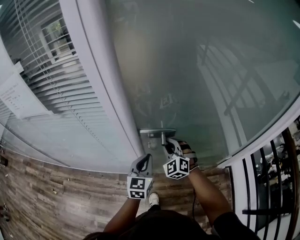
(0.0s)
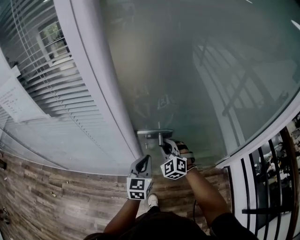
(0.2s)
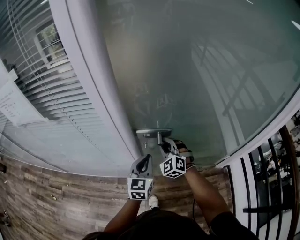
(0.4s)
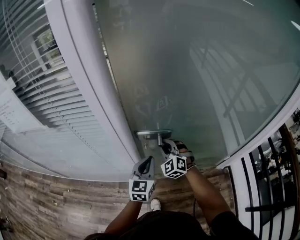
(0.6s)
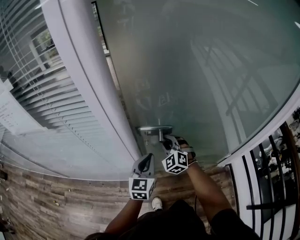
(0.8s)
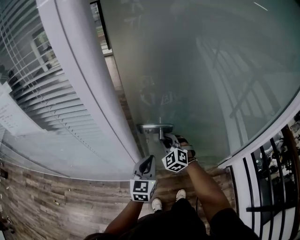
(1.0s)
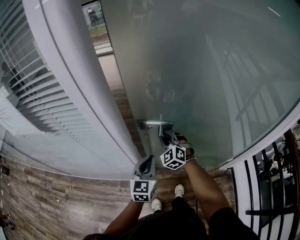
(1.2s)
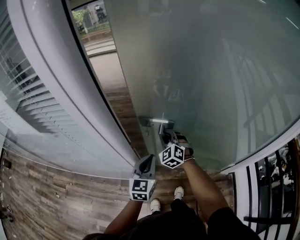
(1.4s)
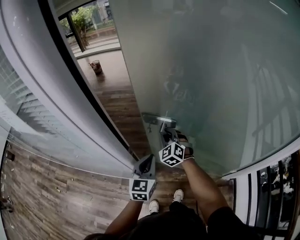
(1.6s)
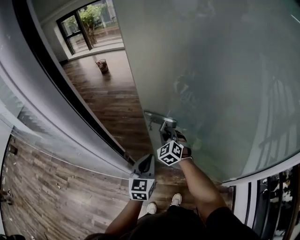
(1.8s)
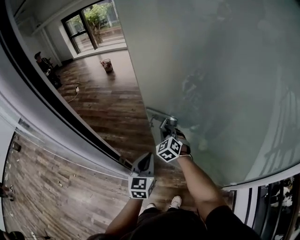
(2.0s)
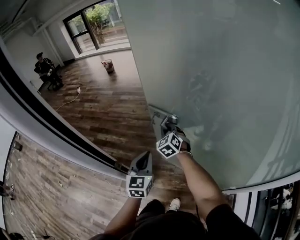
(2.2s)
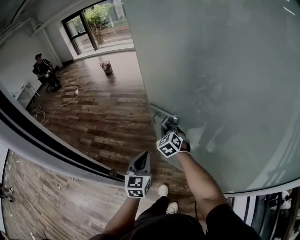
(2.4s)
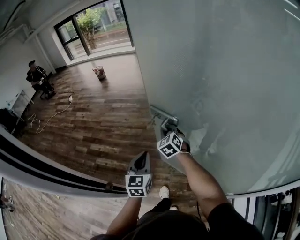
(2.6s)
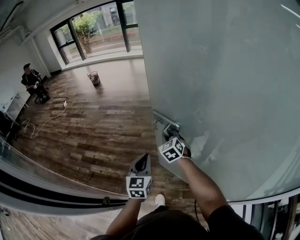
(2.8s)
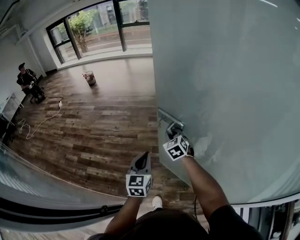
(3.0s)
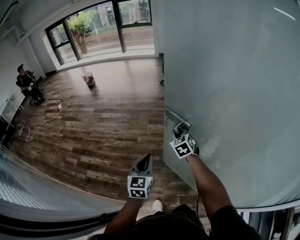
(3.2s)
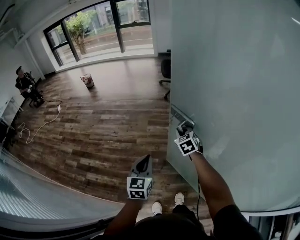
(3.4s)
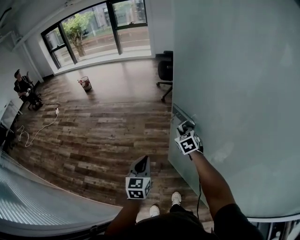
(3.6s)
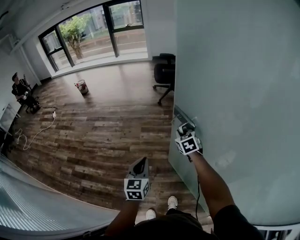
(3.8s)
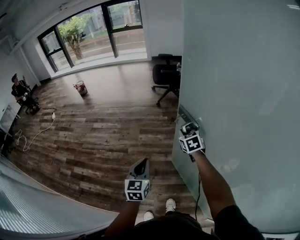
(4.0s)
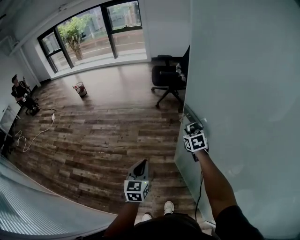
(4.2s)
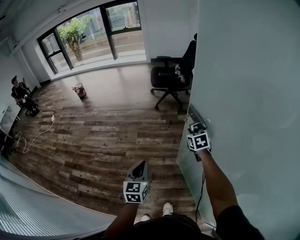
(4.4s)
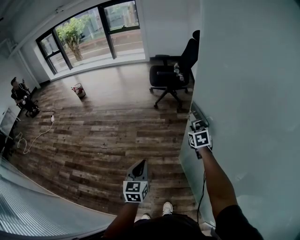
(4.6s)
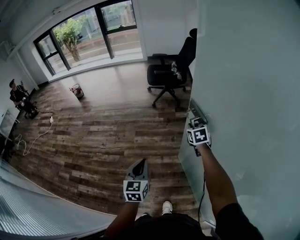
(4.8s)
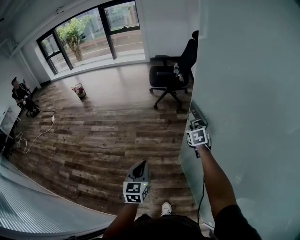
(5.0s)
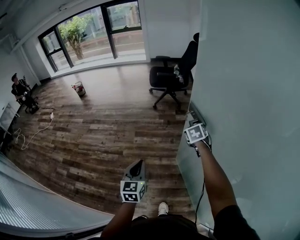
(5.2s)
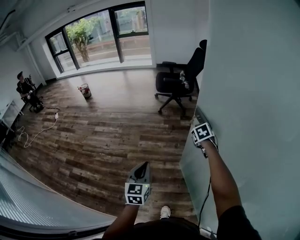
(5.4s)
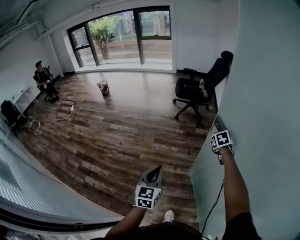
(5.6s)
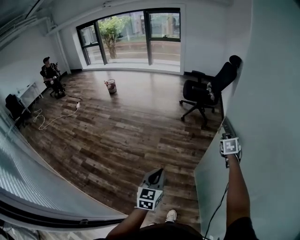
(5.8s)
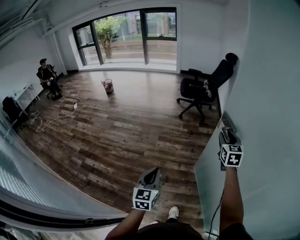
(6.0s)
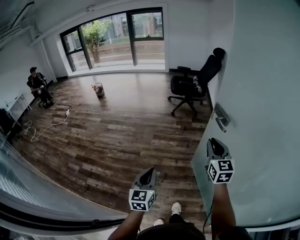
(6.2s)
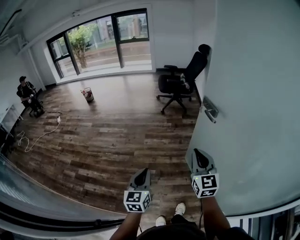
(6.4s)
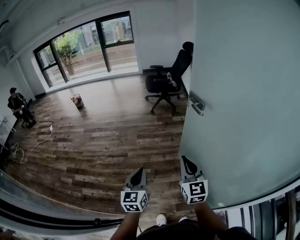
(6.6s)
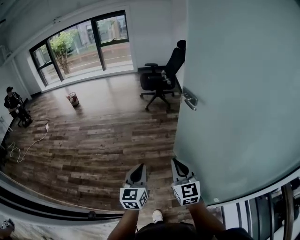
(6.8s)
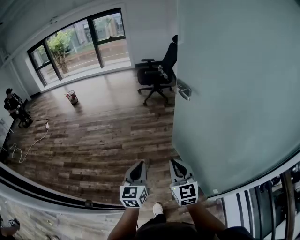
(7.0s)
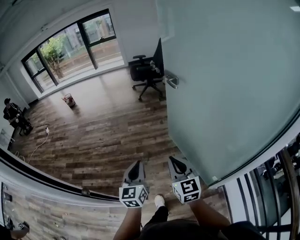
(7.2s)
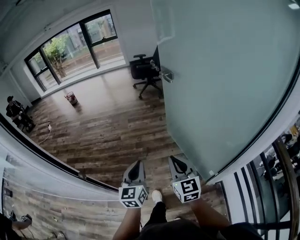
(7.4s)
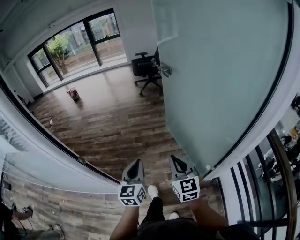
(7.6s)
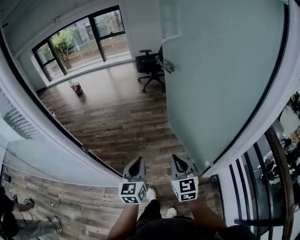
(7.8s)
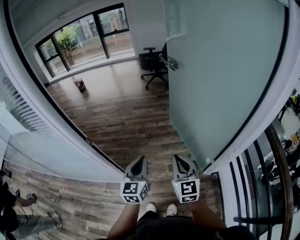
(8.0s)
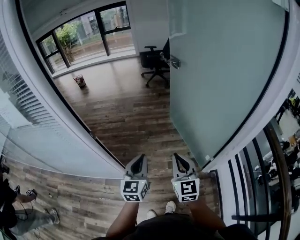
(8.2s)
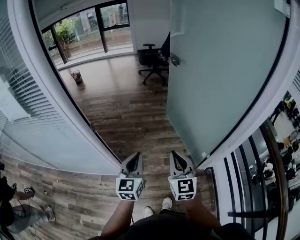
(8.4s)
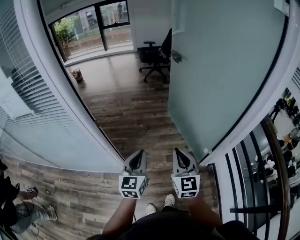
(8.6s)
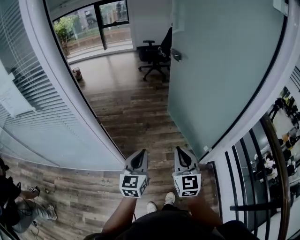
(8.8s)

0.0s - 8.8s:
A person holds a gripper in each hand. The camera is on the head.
0.0s - 1.4s: The right gripper shifts some 15 cm forward. The left gripper moves forward, roughly 10 cm.
1.4s - 3.0s: The right gripper shifts roughly 40 cm forward and to the right, and turns by approximately 20 degrees; the left gripper heads forward, covering some 35 cm.
3.0s - 4.4s: The left gripper travels forward and to the right by about 30 cm; the right gripper is displaced to the right and forward by some 40 cm, and turns by approximately 20 degrees.
4.4s - 5.8s: The left gripper is displaced backward and to the left by about 15 cm. Meanwhile the right gripper moves upward, roughly 10 cm, and opens up.
5.8s - 7.4s: Both grippers are carried backward, roughly 60 cm. The right gripper tilts its fingers roughly 30 degrees upward, and closes up.
7.4s - 8.8s: Both grippers move backward, some 25 cm.

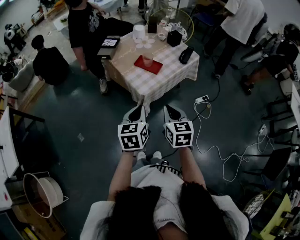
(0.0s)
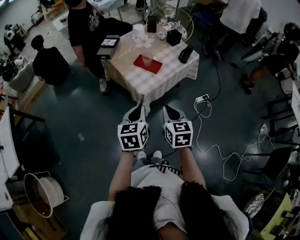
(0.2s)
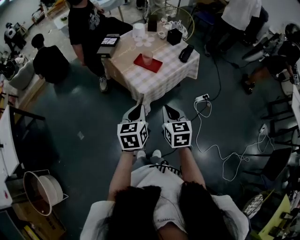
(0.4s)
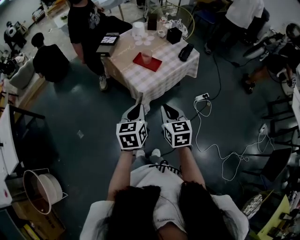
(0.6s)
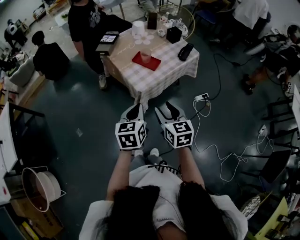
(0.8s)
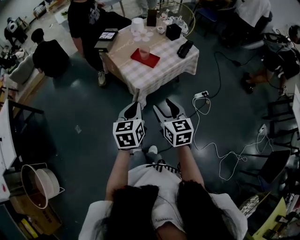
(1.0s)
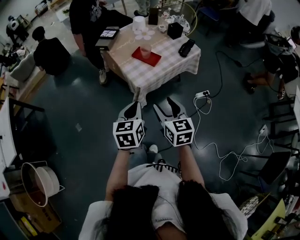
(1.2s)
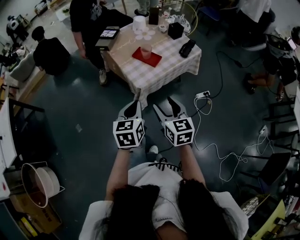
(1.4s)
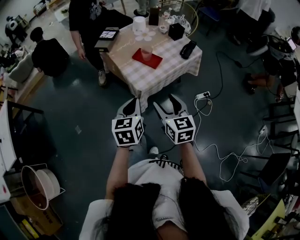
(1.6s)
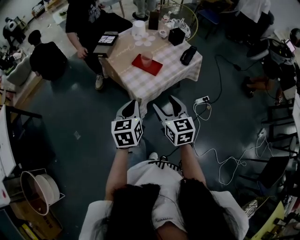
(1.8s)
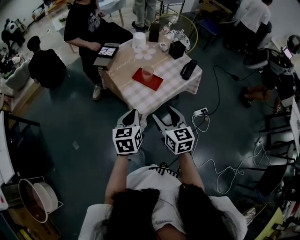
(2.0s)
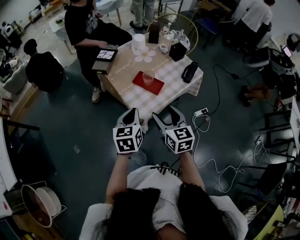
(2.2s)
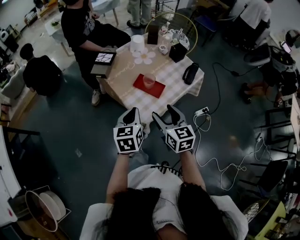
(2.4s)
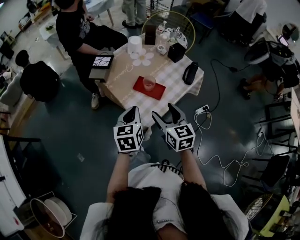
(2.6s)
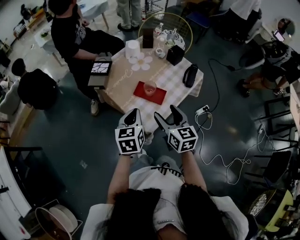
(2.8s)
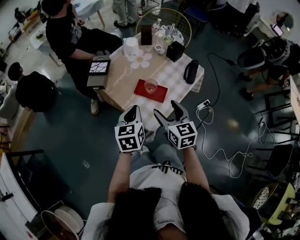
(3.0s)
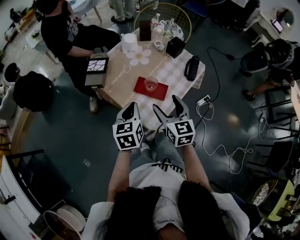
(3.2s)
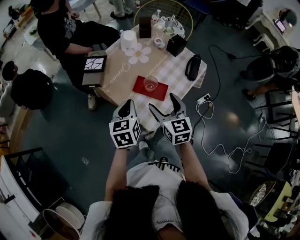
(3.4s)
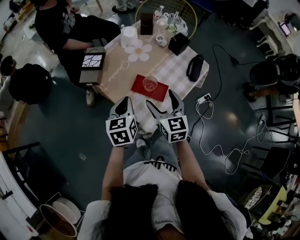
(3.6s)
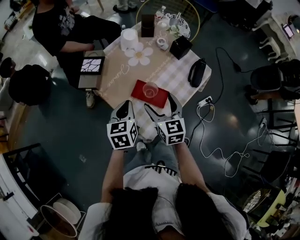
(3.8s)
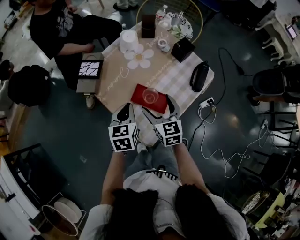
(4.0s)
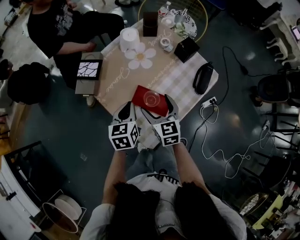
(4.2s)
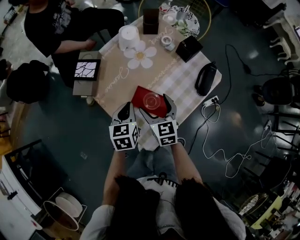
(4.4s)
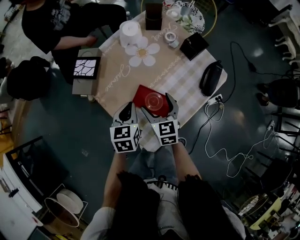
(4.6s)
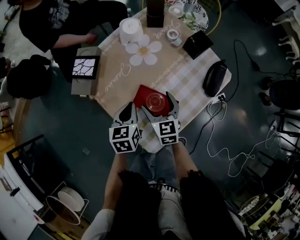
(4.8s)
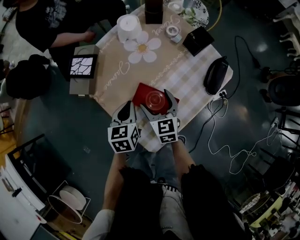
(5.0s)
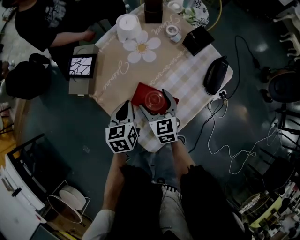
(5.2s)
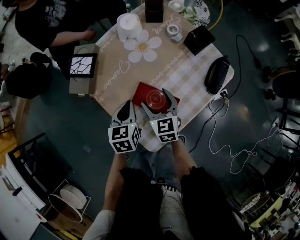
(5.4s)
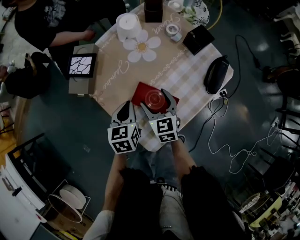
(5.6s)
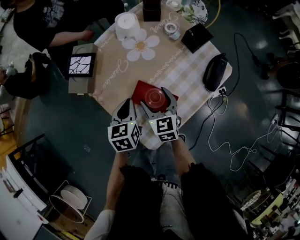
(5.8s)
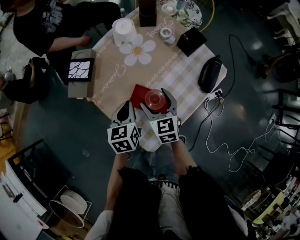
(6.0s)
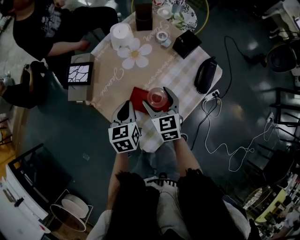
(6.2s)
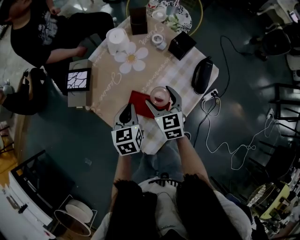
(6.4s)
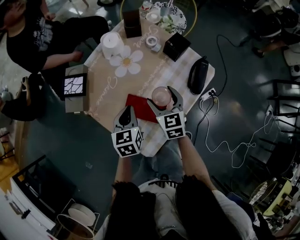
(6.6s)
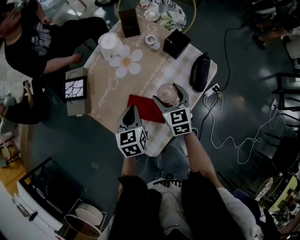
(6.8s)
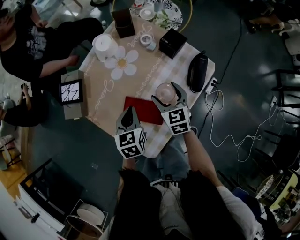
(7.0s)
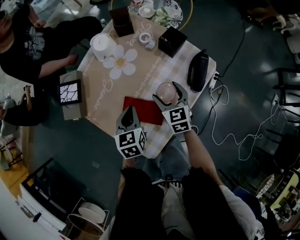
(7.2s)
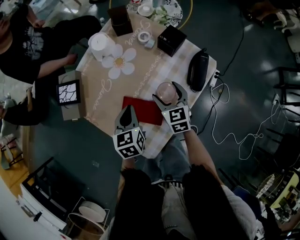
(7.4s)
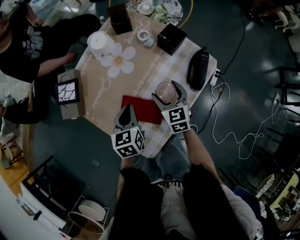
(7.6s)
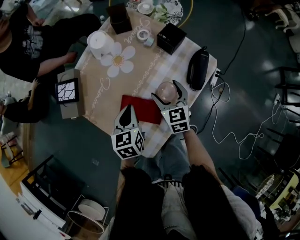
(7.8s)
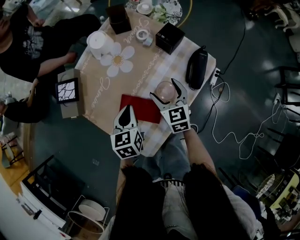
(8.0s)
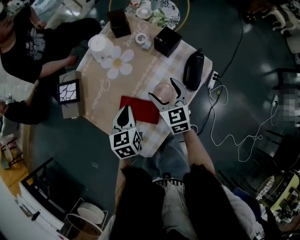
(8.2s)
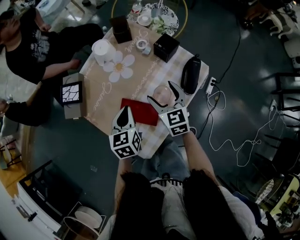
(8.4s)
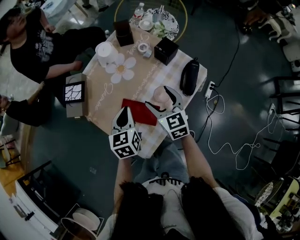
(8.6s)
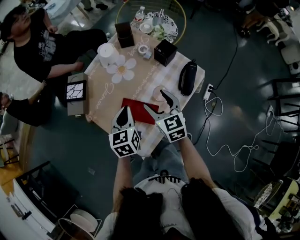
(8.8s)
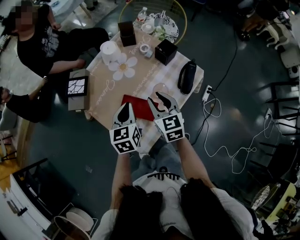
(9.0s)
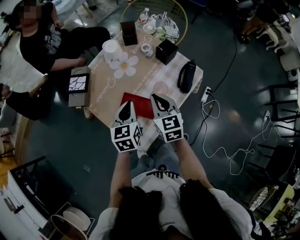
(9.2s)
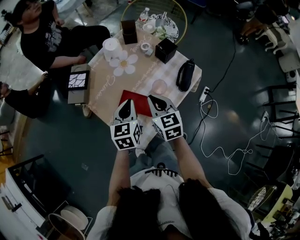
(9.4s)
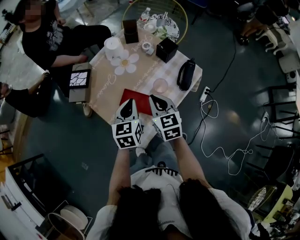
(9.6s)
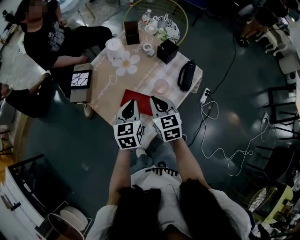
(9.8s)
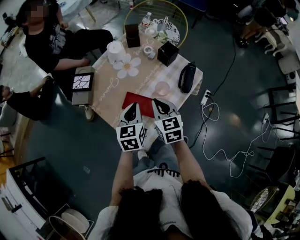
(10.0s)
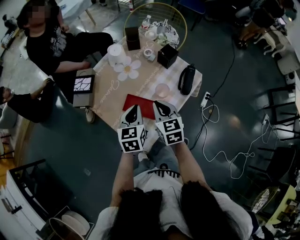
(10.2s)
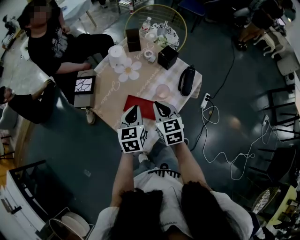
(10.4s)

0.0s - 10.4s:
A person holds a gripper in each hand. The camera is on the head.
0.0s - 1.4s: The right gripper opens its fingers.
1.4s - 3.0s: Both grippers move forward, some 25 cm.
3.0s - 4.4s: Both grippers travel together forward and downward, about 20 cm.
4.4s - 6.0s: There are only small adjustments of the grippers.
6.0s - 7.4s: The right gripper moves to the right, roughly 10 cm; the left gripper moves to the right, approximately 5 cm.
7.4s - 9.0s: The right gripper moves upward and backward, roughly 15 cm, and closes. Meanwhile the left gripper moves upward, roughly 10 cm.
9.0s - 10.4s: The grippers stay close to where they were, moving slightly.

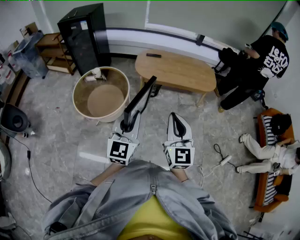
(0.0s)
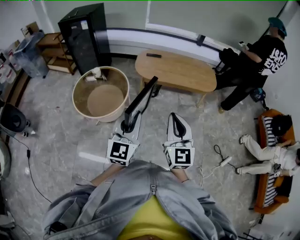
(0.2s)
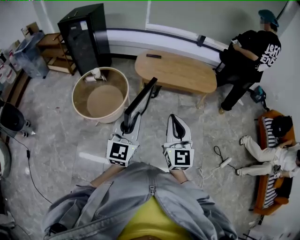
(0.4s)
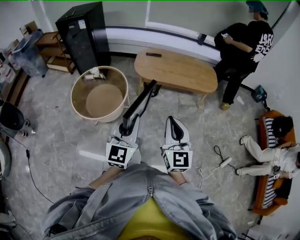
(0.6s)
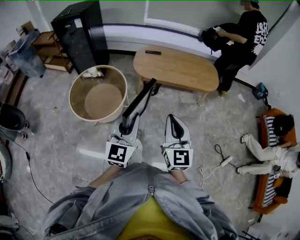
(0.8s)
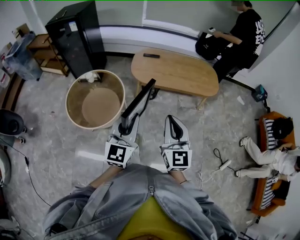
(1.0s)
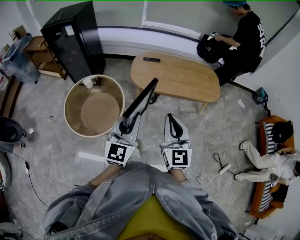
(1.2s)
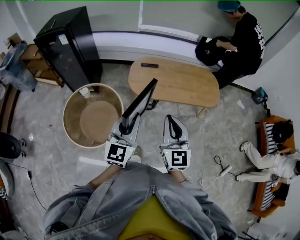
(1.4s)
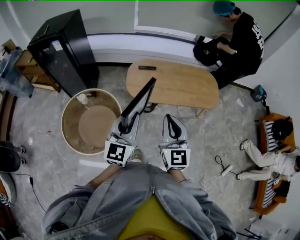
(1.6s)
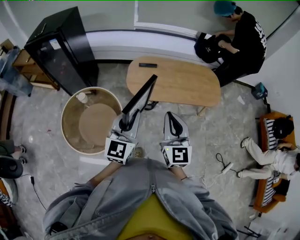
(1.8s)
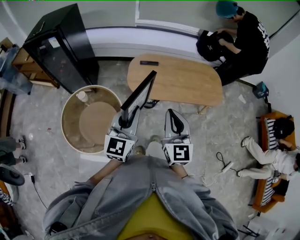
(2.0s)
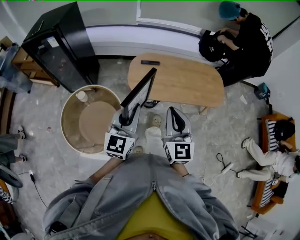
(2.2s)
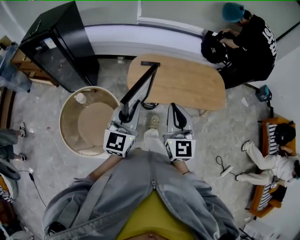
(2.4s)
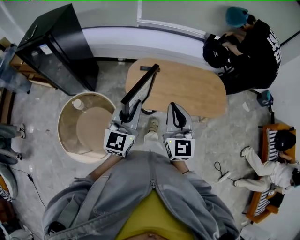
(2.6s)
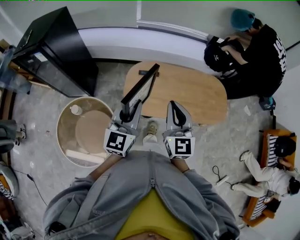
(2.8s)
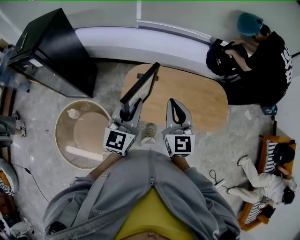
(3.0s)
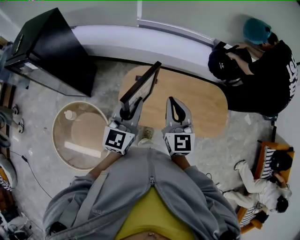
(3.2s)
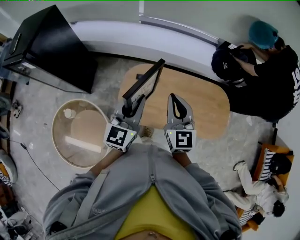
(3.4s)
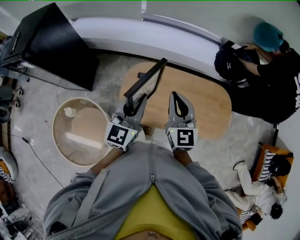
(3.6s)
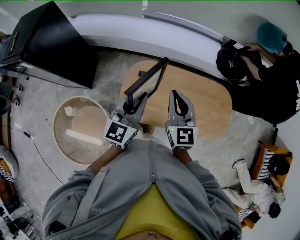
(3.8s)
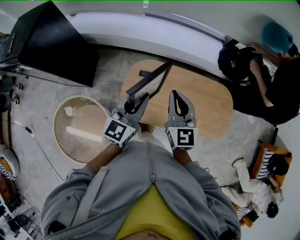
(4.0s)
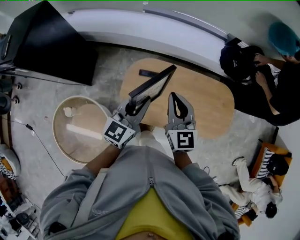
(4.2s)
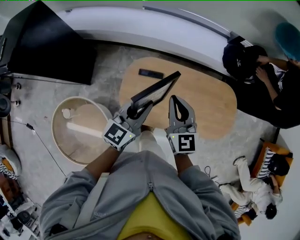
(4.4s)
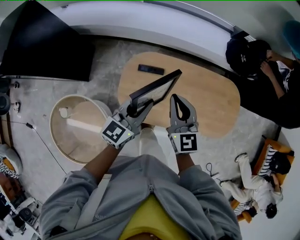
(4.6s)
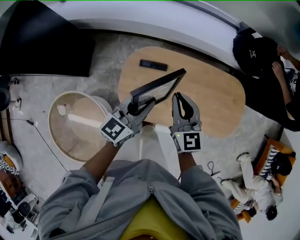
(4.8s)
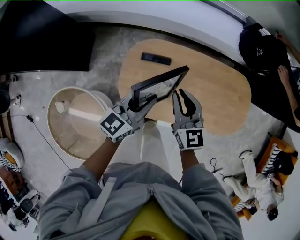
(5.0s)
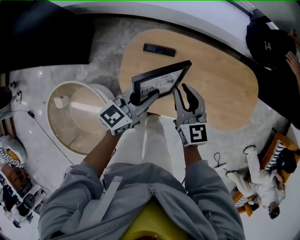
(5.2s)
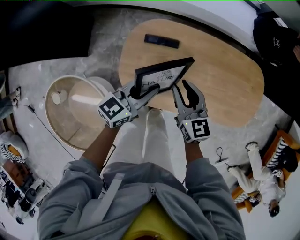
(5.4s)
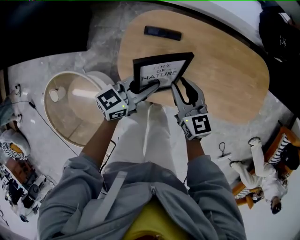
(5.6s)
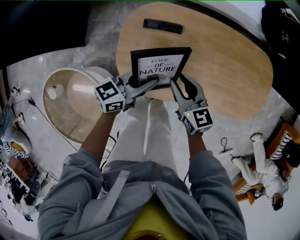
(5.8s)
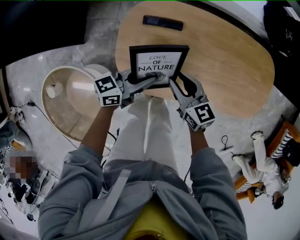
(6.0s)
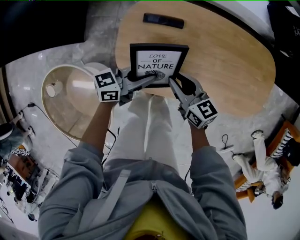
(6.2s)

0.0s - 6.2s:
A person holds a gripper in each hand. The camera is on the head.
0.0s - 1.6s: Both grippers move forward, roughly 35 cm.
1.6s - 3.2s: The pair of grippers is taken forward, about 40 cm.
3.2s - 4.6s: Both grippers travel together downward and forward, about 15 cm. The left gripper rotates some 20 degrees.
4.6s - 6.2s: The two grippers go roughly 25 cm downward. The right gripper turns by some 40 degrees, and opens up. The left gripper changes its angle by some 40 degrees.
